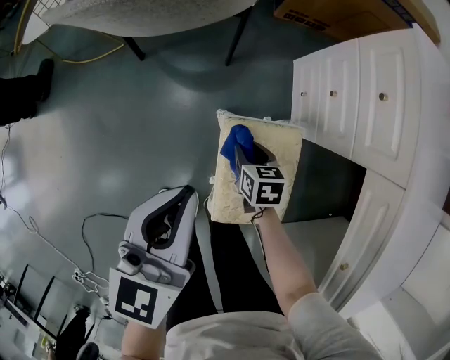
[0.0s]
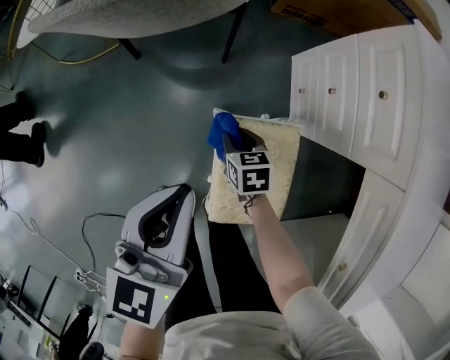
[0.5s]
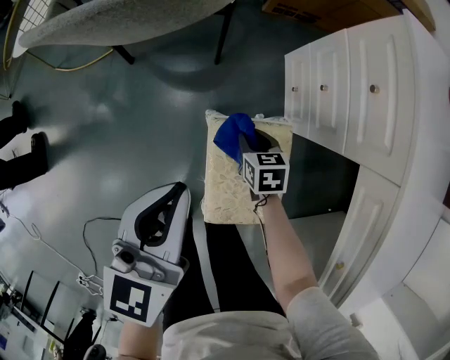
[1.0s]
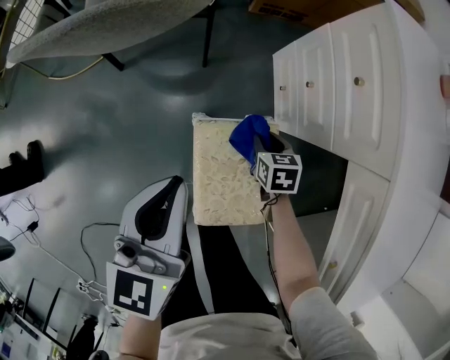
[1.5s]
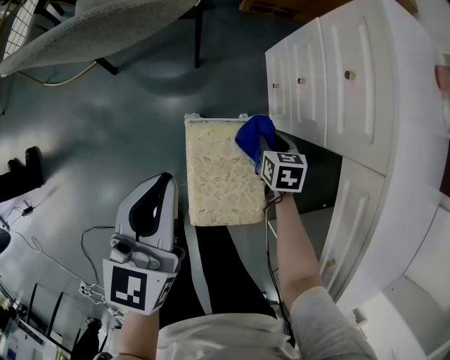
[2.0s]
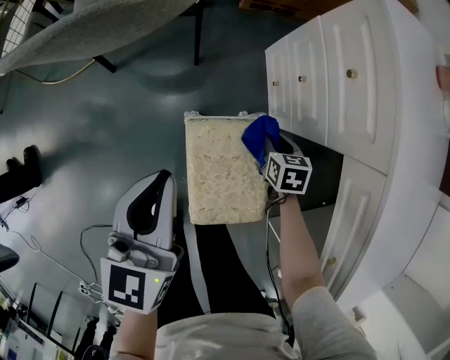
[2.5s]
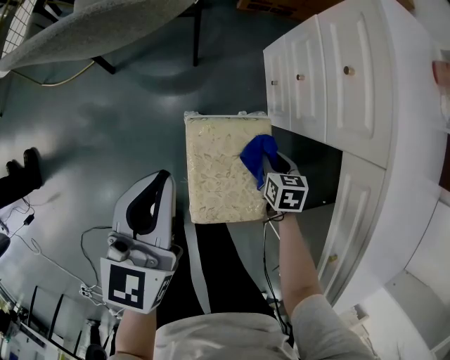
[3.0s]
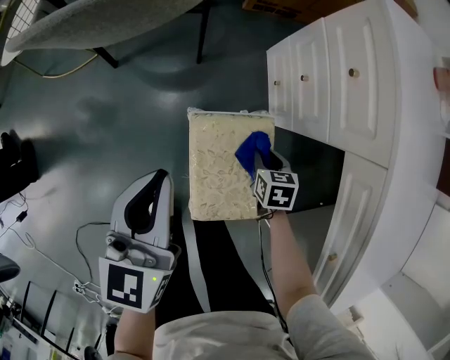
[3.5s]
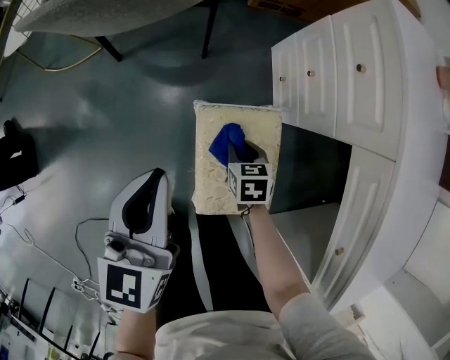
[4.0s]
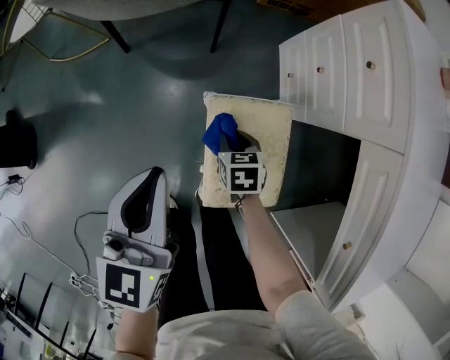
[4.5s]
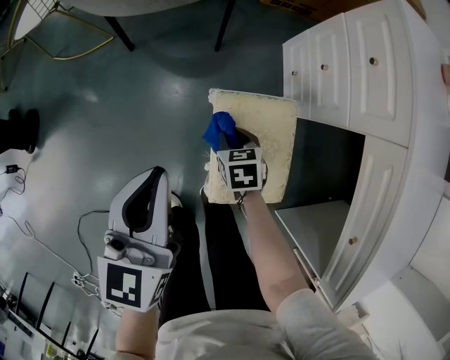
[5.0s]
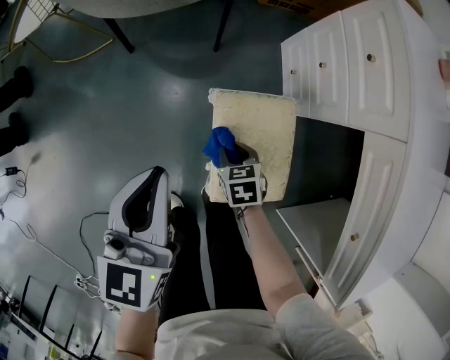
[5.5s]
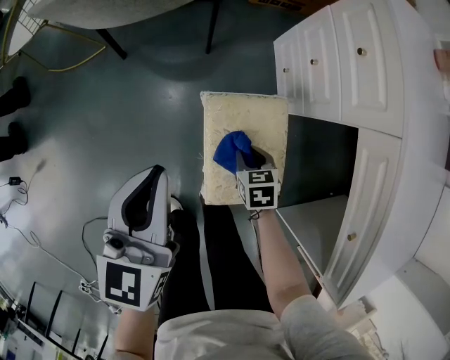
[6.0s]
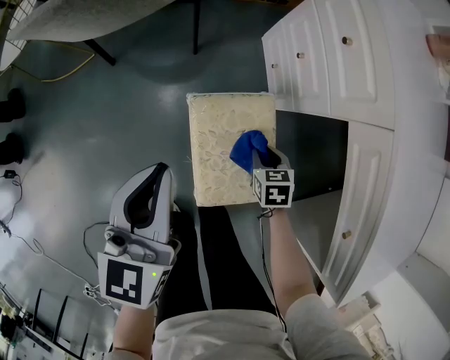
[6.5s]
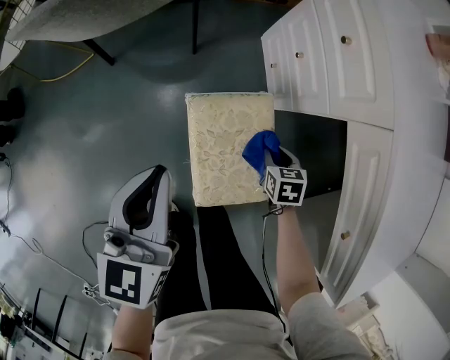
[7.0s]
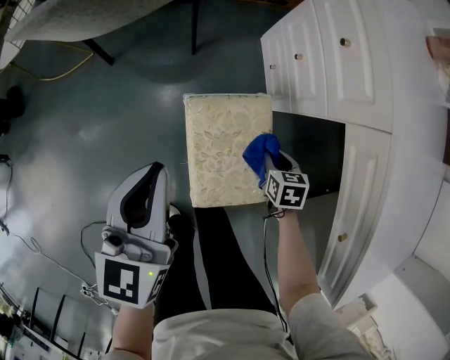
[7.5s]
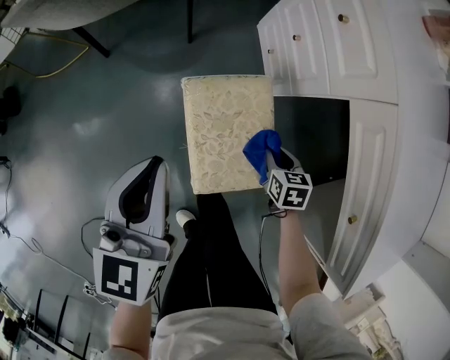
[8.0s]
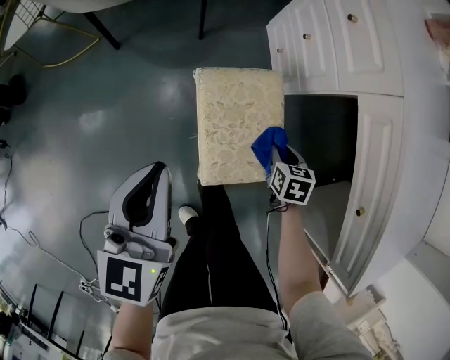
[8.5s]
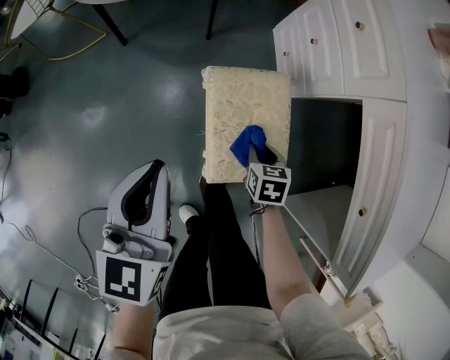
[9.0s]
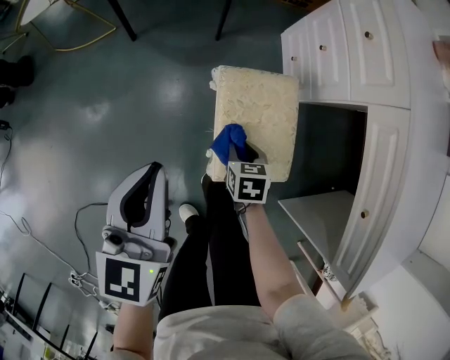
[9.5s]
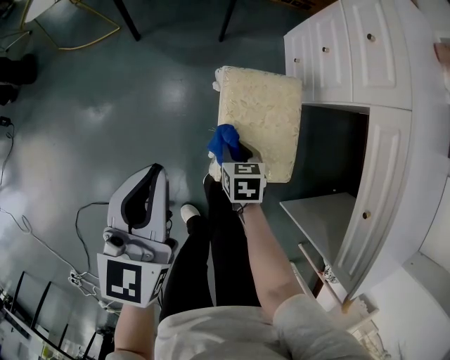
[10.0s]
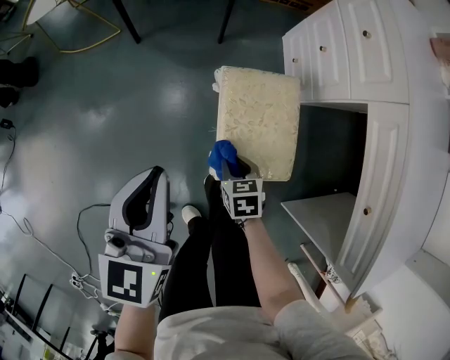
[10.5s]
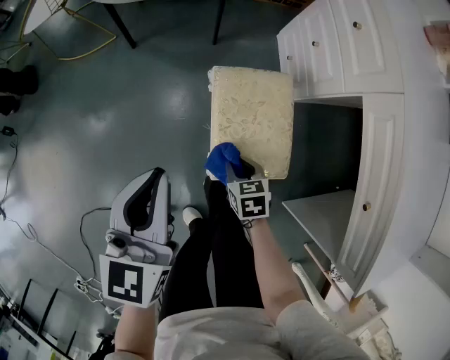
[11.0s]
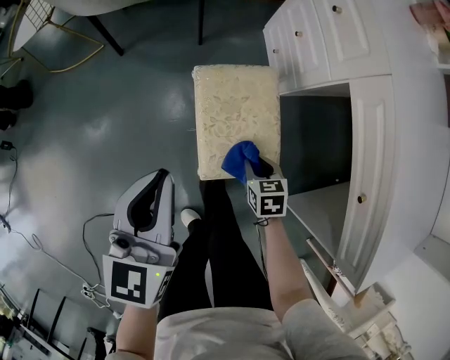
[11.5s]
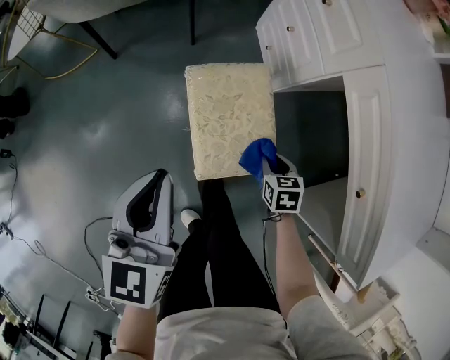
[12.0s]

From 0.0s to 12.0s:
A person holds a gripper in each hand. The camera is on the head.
From 0.0s to 2.0s: The right gripper goes some 15 cm to the right. Meanwhile the left gripper moves to the right, about 5 cm.
From 2.0s to 4.0s: The right gripper goes approximately 15 cm to the left and backward. Meanwhile the left gripper shifts by some 5 cm.
From 4.0s to 6.0s: The right gripper goes about 5 cm backward, and reaches roughly 10 cm to the left, then returns.
From 6.0s to 8.0s: The right gripper shifts some 15 cm to the right. Meanwhile the left gripper moves to the right, some 5 cm.
From 8.0s to 10.0s: The left gripper heads backward and to the left, covering about 10 cm. The right gripper moves to the left, roughly 20 cm.
From 10.0s to 12.0s: The left gripper goes about 10 cm to the right; the right gripper goes some 20 cm to the right.

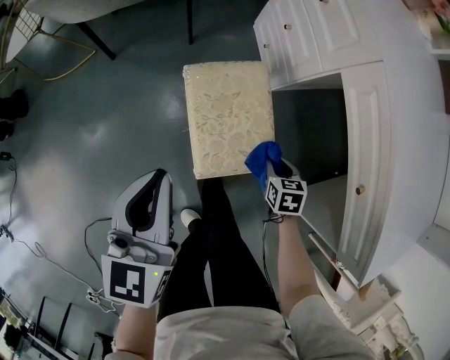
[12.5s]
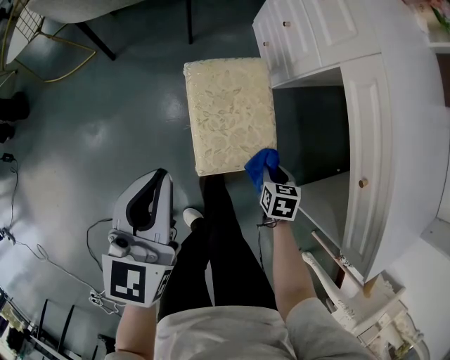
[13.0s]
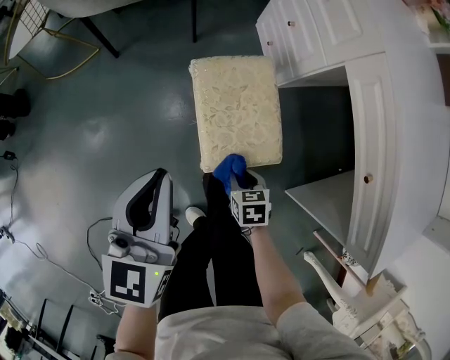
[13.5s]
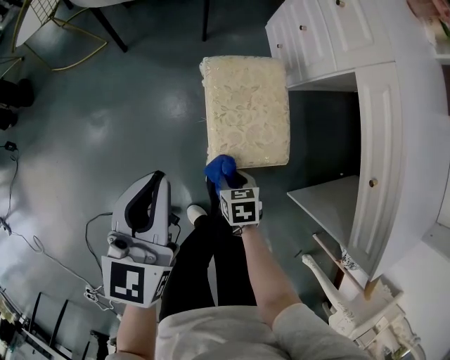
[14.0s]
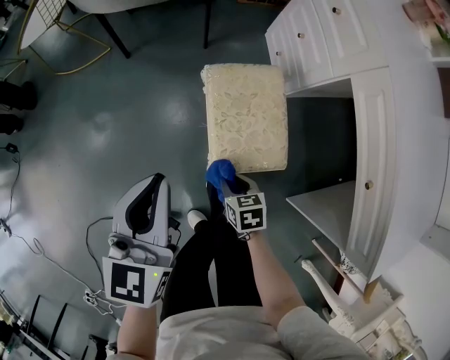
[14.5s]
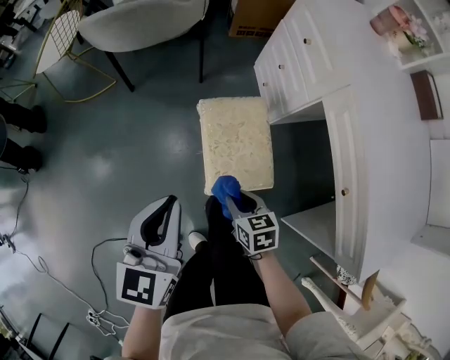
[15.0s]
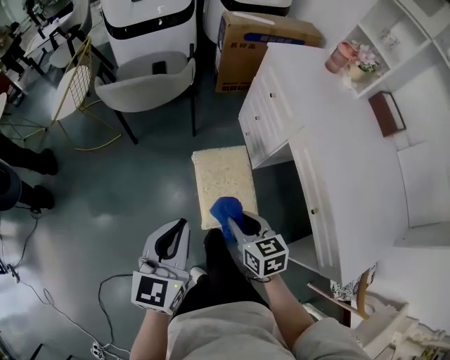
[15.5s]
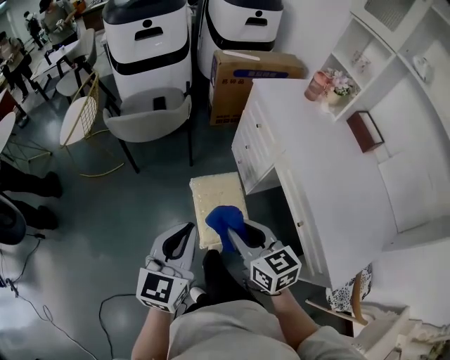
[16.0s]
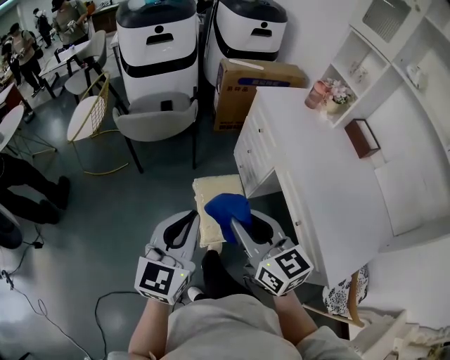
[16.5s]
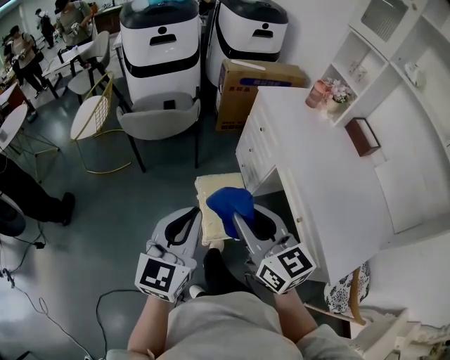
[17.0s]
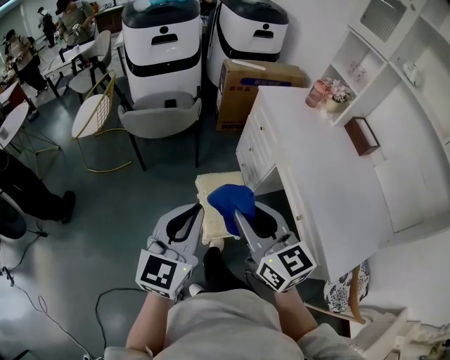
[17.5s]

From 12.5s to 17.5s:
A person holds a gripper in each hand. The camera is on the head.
From 12.5s to 15.0s: The left gripper is displaced upward and backward by some 10 cm. Meanwhile the right gripper shifts roughly 20 cm to the left and upward, and rotates about 20 degrees.
From 15.0s to 17.5s: The left gripper shifts roughly 25 cm upward. Meanwhile the right gripper is displaced upward by about 50 cm, and points its fingers approximately 40 degrees further upward.

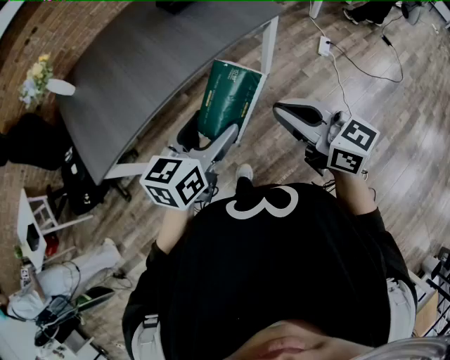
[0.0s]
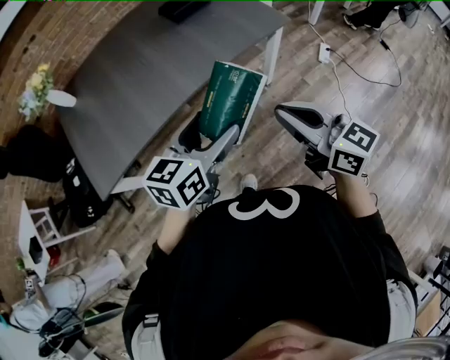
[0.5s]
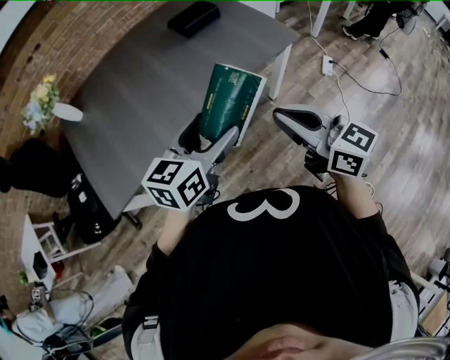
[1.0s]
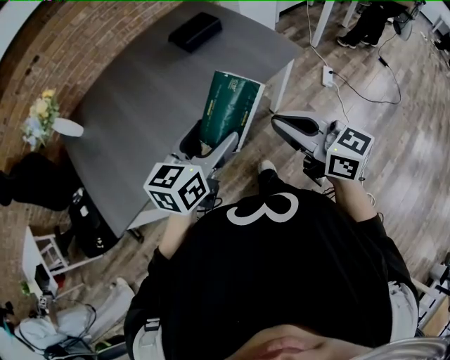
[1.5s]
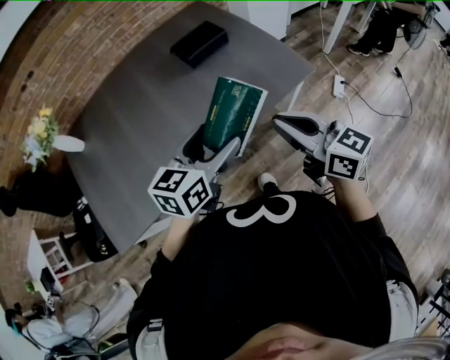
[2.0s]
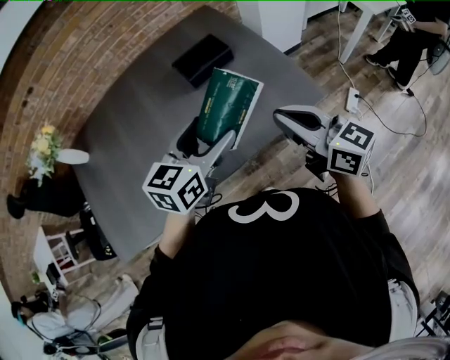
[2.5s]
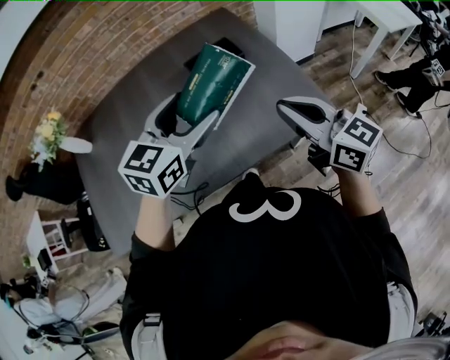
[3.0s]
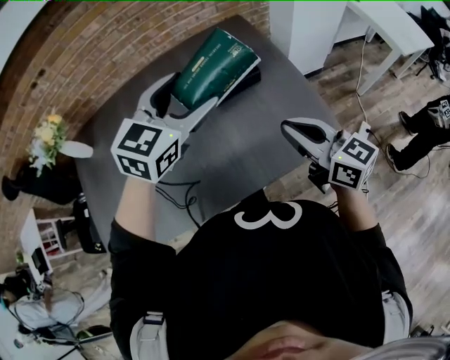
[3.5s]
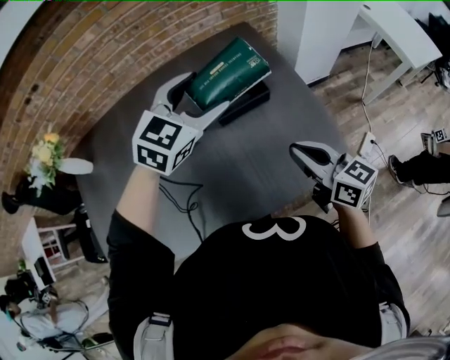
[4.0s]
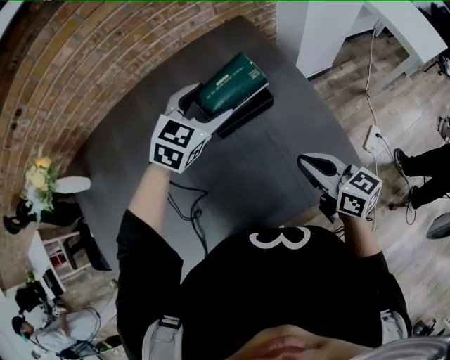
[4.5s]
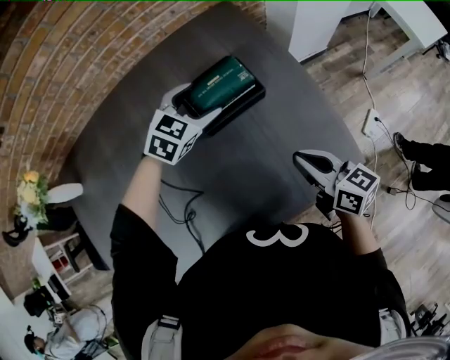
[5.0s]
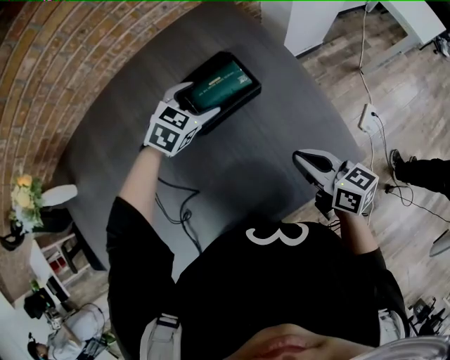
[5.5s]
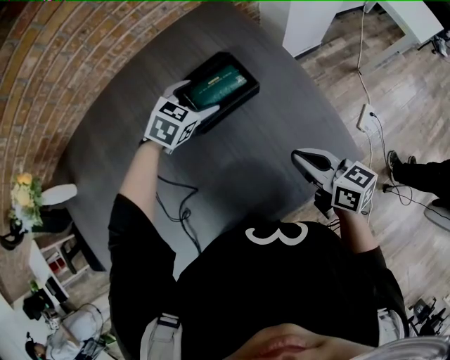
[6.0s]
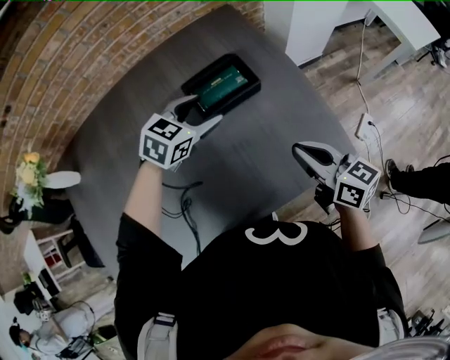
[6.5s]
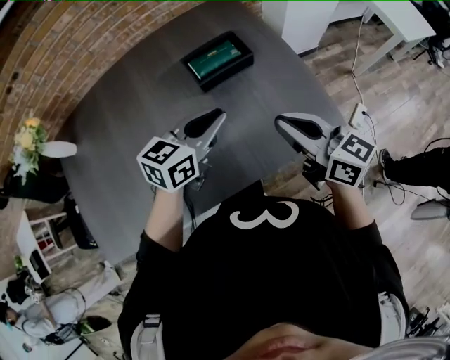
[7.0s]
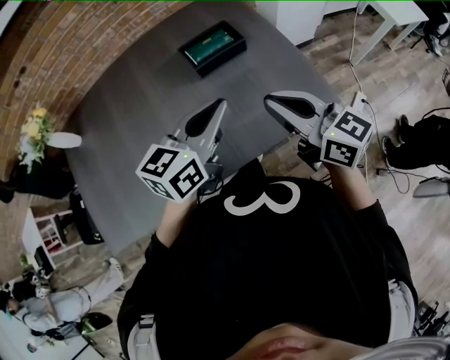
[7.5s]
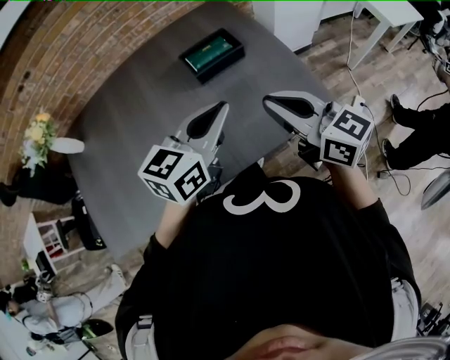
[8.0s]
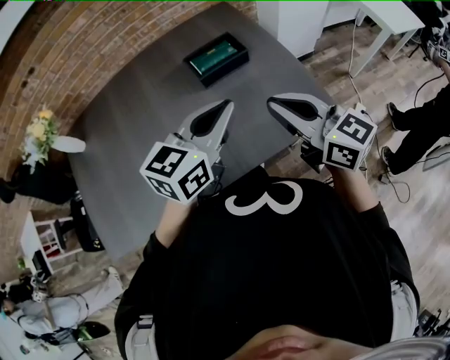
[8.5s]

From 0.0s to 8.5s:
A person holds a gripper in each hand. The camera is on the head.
From 0.0s to 2.0s: The grippers both shift forward by approximately 30 cm.
From 2.0s to 4.0s: The grippers both shift forward by roughly 30 cm. The left gripper rotates roughly 40 degrees.
From 4.0s to 6.5s: The left gripper is displaced downward by roughly 15 cm, and changes its angle by roughly 20 degrees. Meanwhile the right gripper shifts approximately 5 cm downward.
From 6.5s to 8.5s: The right gripper goes approximately 15 cm upward and backward, and turns by approximately 20 degrees. The left gripper moves backward and upward, roughly 25 cm, rotates about 30 degrees, and closes up.

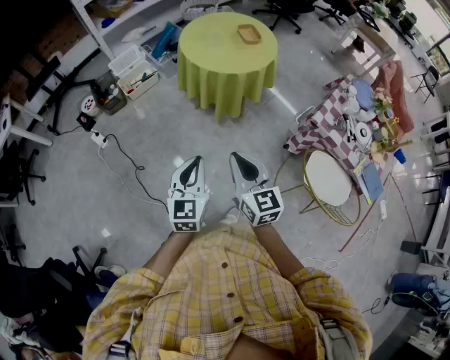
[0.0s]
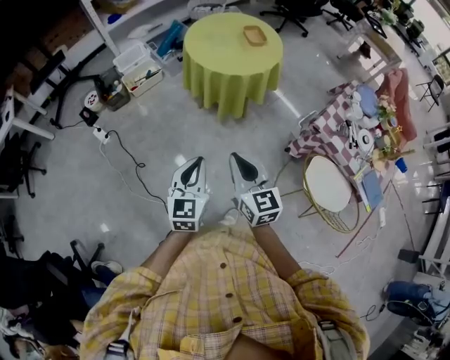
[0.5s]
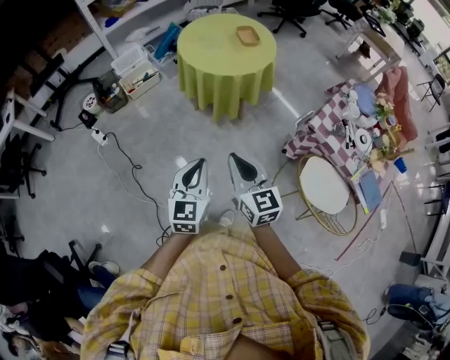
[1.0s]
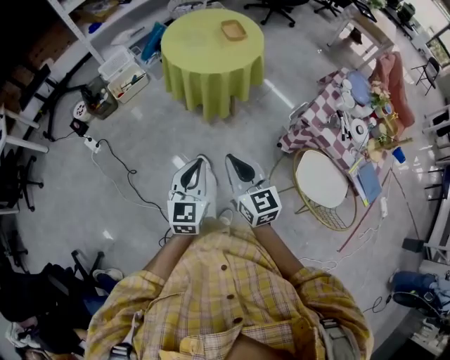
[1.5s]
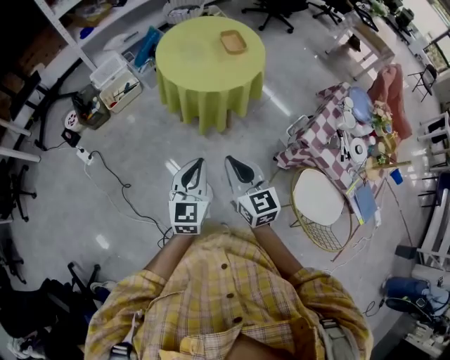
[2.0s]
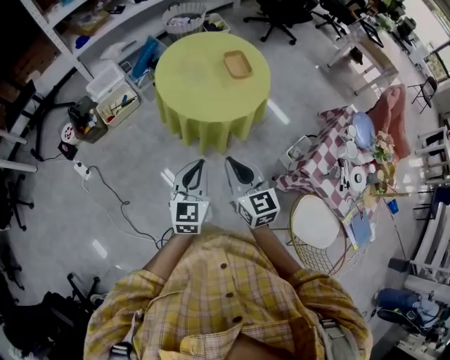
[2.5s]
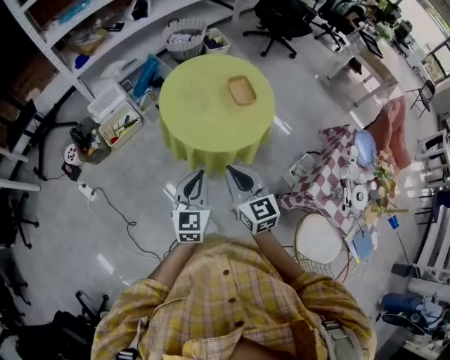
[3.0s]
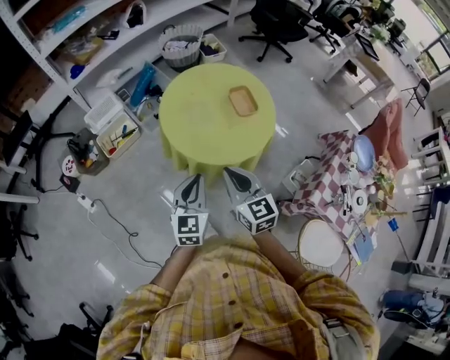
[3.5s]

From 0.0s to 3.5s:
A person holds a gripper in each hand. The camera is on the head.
From 0.0s to 2.0s: The grippers both shift forward and to the right by some 20 cm.
From 2.0s to 3.5s: The grippers both shift forward by some 30 cm.
